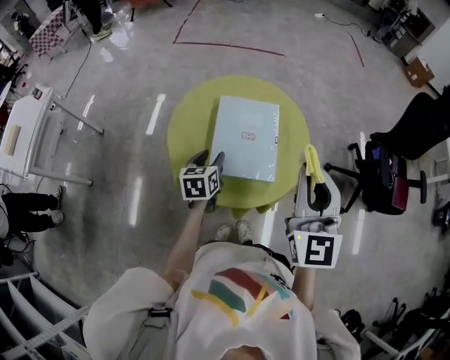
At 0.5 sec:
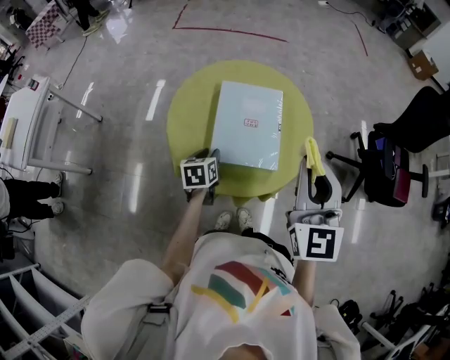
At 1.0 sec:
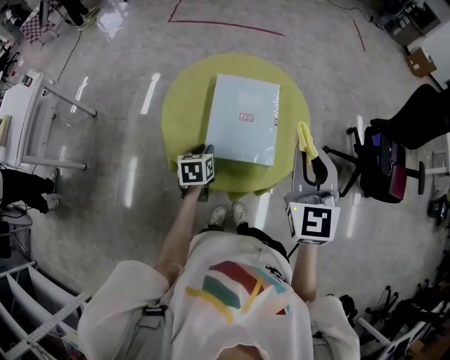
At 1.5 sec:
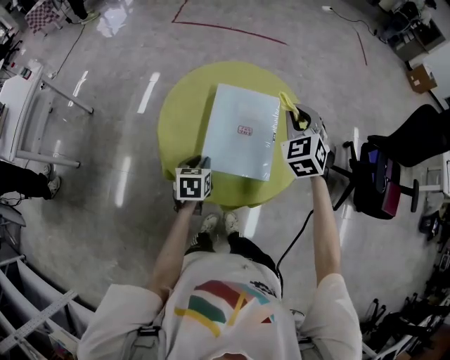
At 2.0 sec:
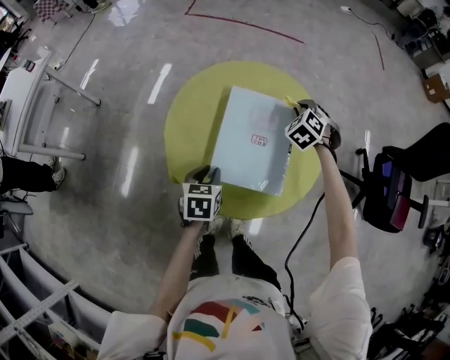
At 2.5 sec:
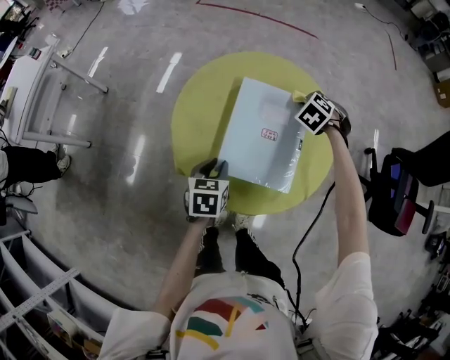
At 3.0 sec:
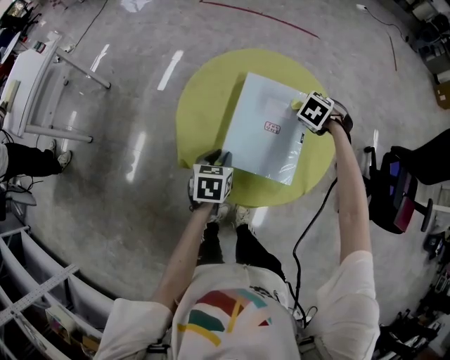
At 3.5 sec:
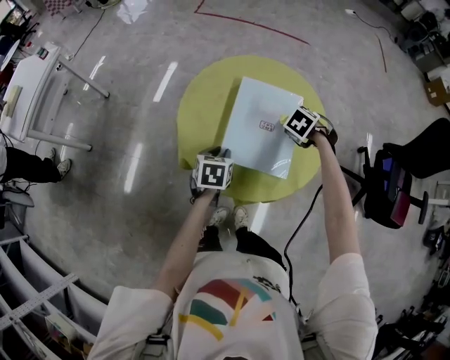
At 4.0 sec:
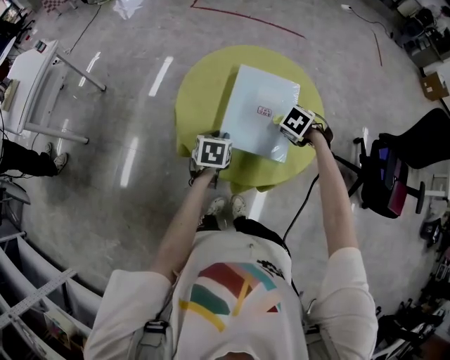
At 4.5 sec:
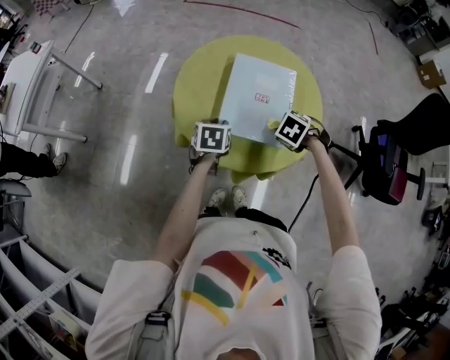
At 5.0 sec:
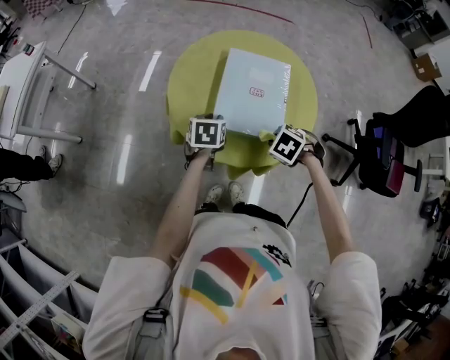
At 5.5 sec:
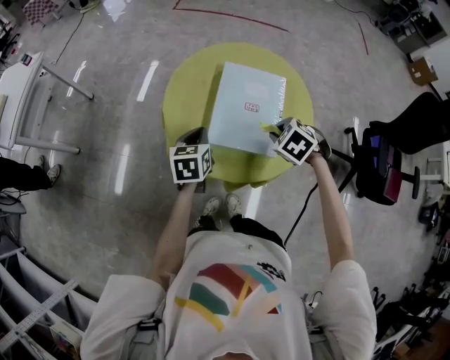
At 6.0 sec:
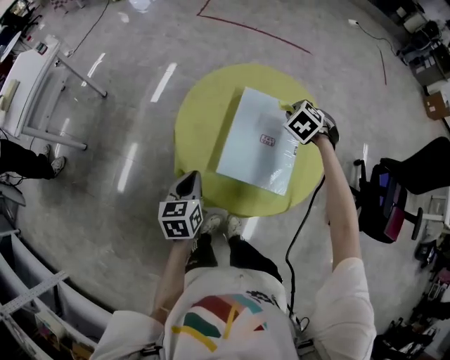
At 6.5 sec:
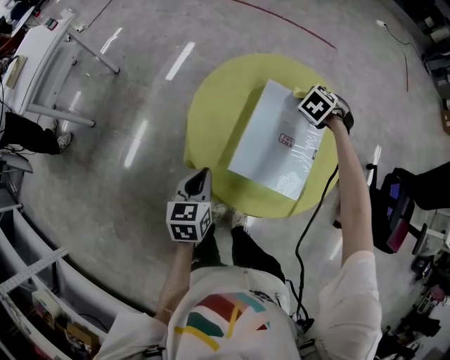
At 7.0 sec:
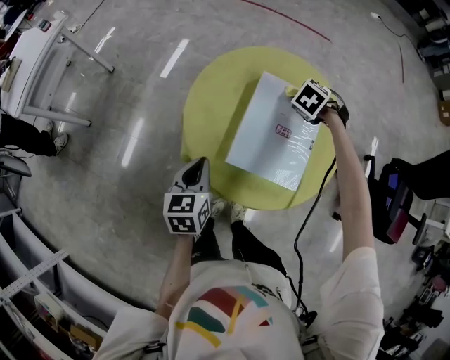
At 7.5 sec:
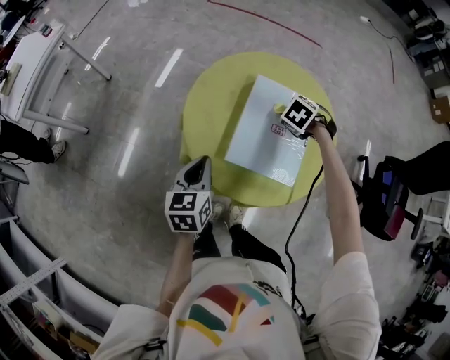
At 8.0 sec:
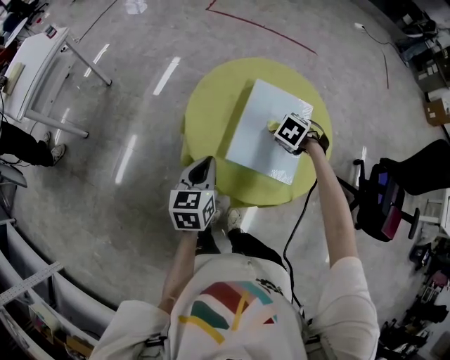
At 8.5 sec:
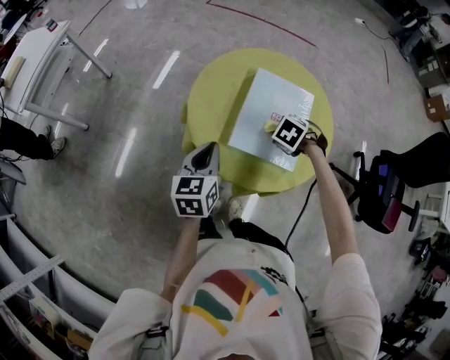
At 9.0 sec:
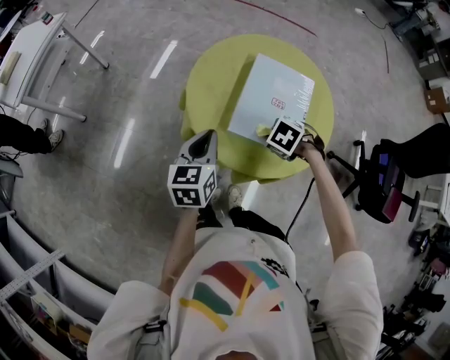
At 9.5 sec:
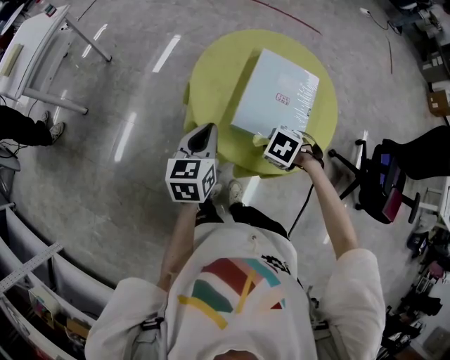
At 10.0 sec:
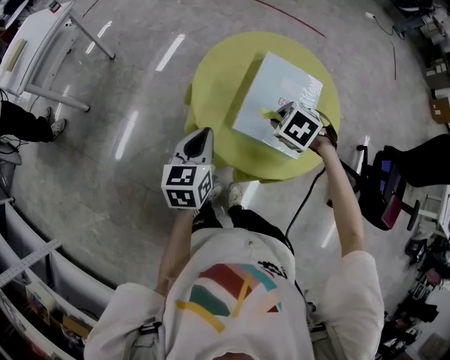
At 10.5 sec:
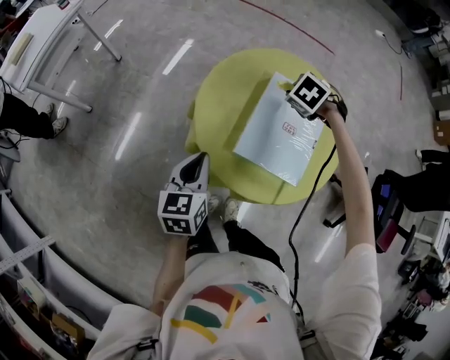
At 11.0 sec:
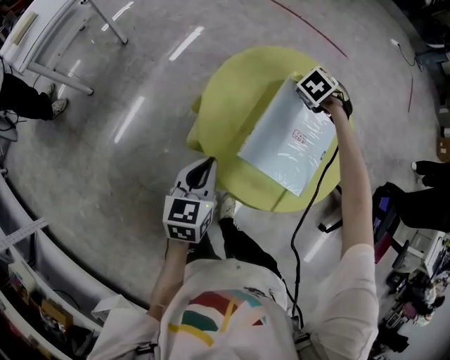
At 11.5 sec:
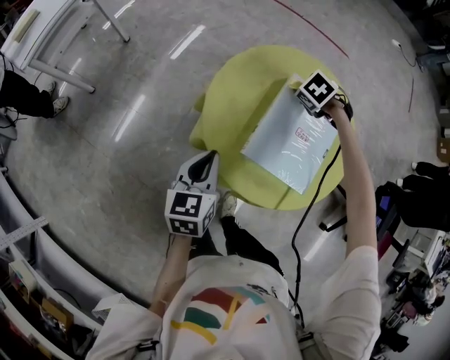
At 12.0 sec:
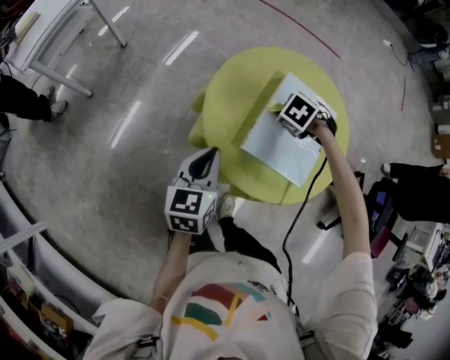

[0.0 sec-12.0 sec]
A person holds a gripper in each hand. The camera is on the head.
0.0 sec to 2.0 sec: The right gripper travels forward and downward by about 40 cm, and tilts its fingers some 50 degrees downward, while the left gripper moves downward, approximately 5 cm, and closes up.
2.0 sec to 4.0 sec: The right gripper moves about 15 cm, and rotates roughly 30 degrees.
4.0 sec to 6.0 sec: The left gripper moves some 10 cm, changes its angle by approximately 20 degrees, and closes. The right gripper shifts by some 15 cm.
6.0 sec to 8.0 sec: The right gripper shifts by roughly 10 cm.
8.0 sec to 10.0 sec: The right gripper moves some 10 cm.

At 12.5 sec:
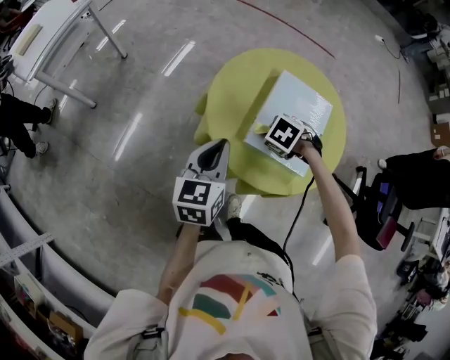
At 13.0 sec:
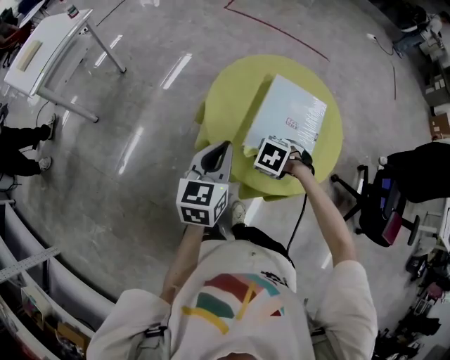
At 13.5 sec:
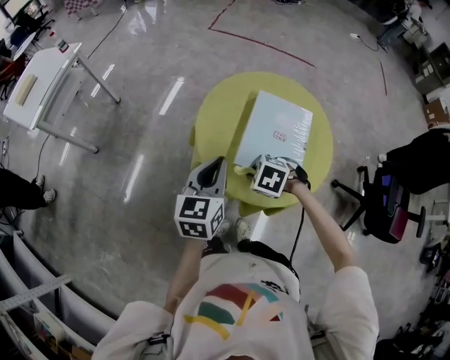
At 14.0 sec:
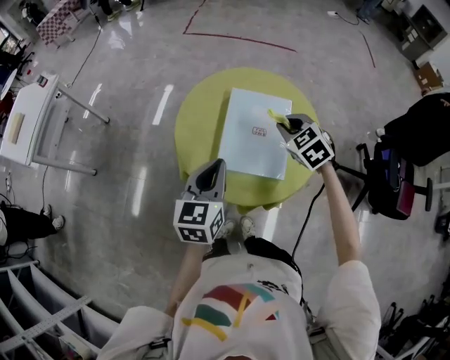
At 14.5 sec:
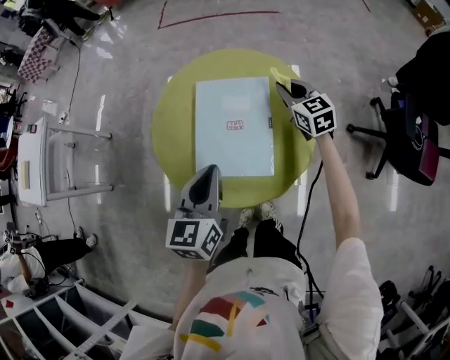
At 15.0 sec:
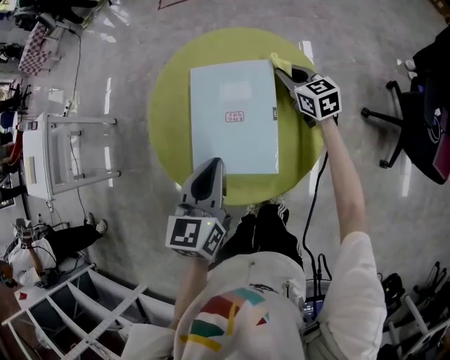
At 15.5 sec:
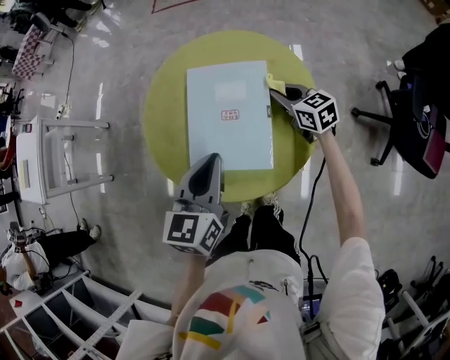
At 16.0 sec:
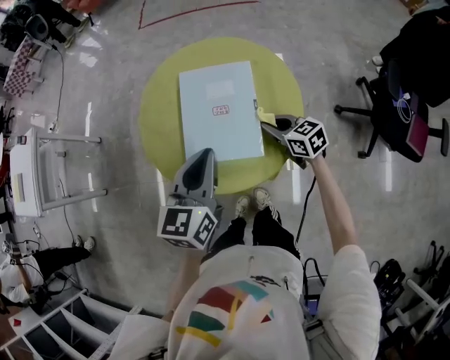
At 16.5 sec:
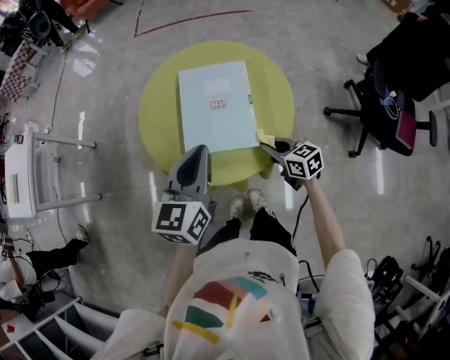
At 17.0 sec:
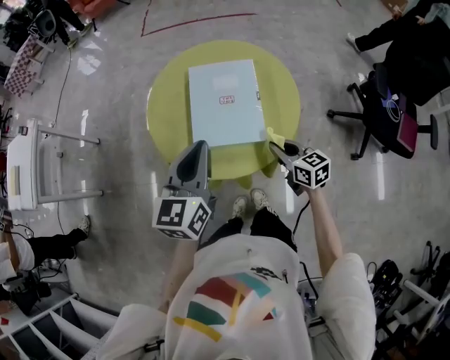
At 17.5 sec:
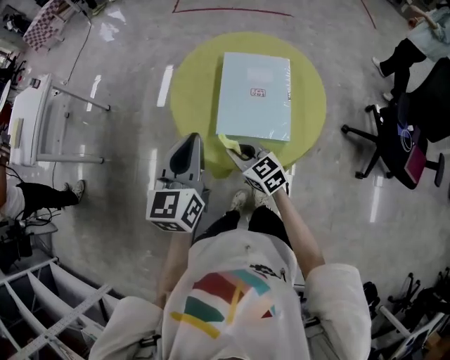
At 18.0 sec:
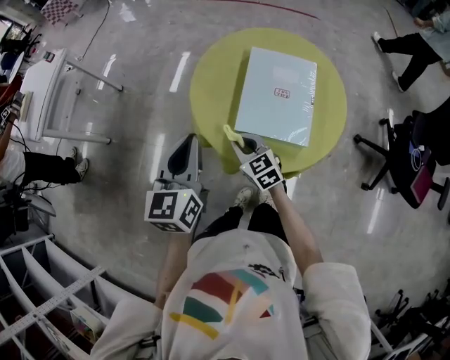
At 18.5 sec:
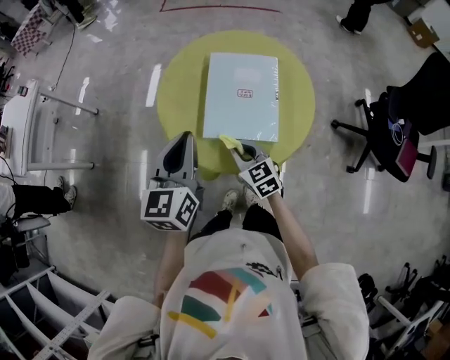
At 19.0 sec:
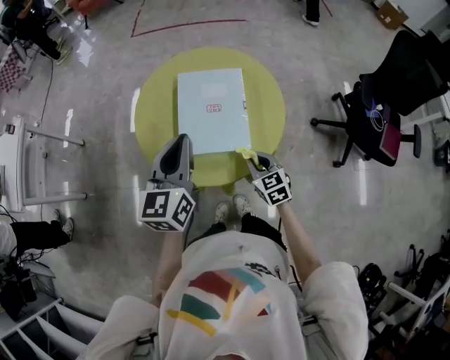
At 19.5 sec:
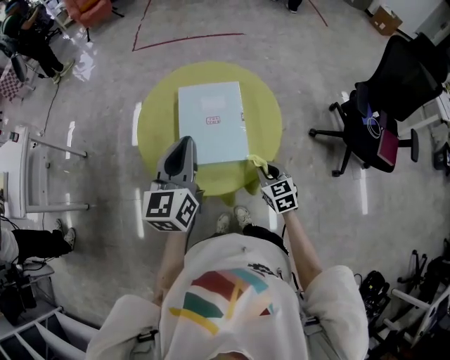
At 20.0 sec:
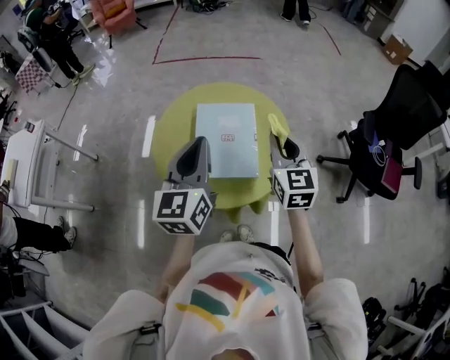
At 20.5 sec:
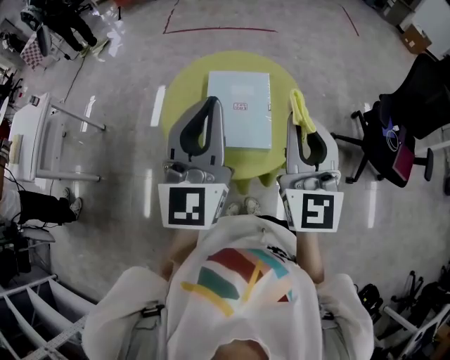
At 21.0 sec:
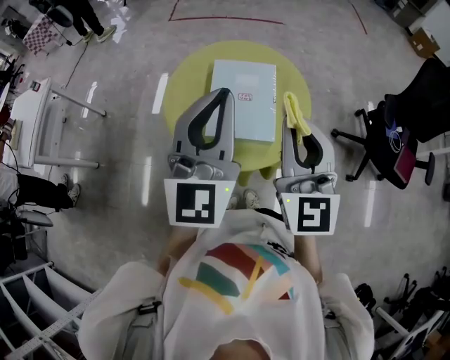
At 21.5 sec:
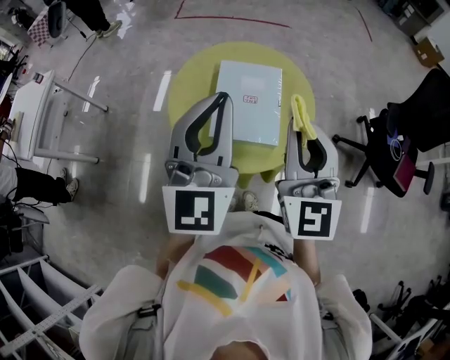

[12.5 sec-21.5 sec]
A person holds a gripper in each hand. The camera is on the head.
12.5 sec to 14.5 sec: The right gripper shifts by about 30 cm, and angles its fingers upward, by about 60 degrees; the left gripper moves about 20 cm.
14.5 sec to 17.0 sec: The right gripper travels backward by some 25 cm, and turns by roughly 20 degrees; the left gripper shifts some 5 cm upward.
17.0 sec to 19.5 sec: The left gripper moves approximately 15 cm to the left and comes back, while the right gripper moves roughly 25 cm to the left and comes back, and swivels approximately 20 degrees.
19.5 sec to 21.5 sec: The left gripper is displaced upward by some 15 cm, and swivels roughly 30 degrees; the right gripper heads upward, covering approximately 35 cm, and tips its fingers upward by approximately 40 degrees.

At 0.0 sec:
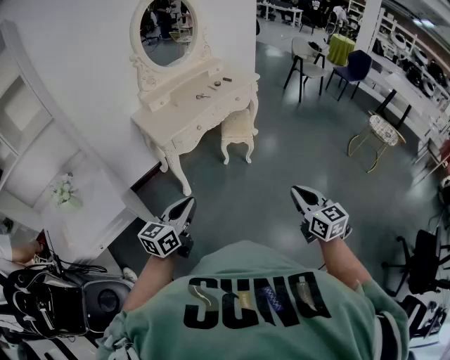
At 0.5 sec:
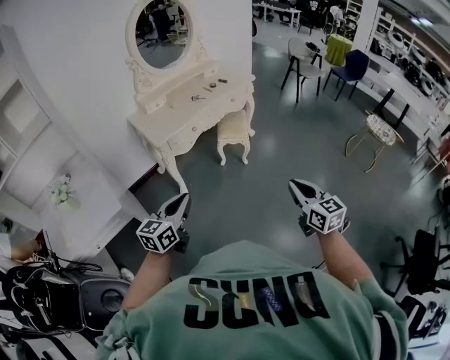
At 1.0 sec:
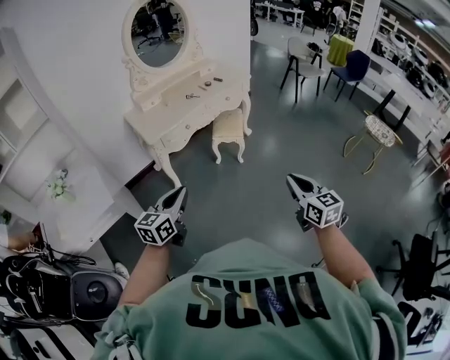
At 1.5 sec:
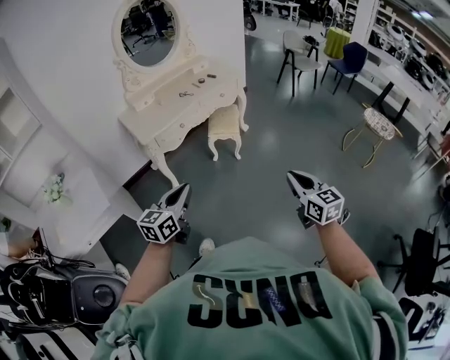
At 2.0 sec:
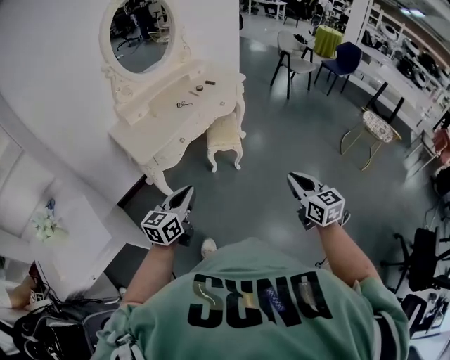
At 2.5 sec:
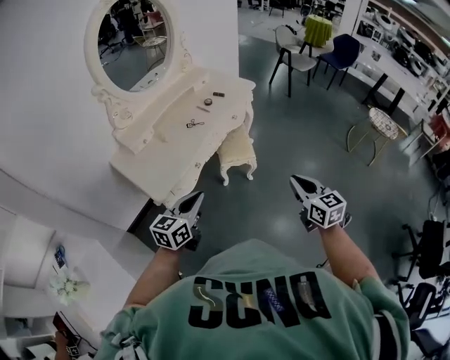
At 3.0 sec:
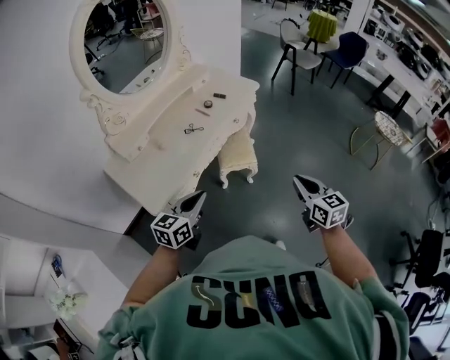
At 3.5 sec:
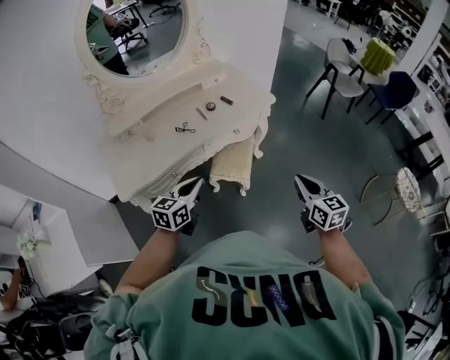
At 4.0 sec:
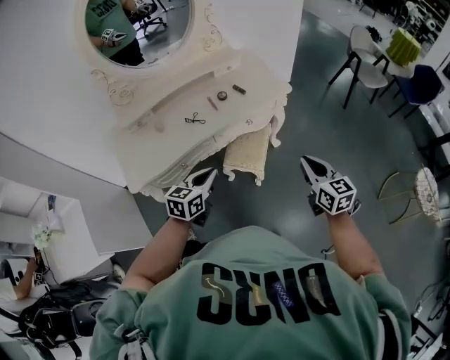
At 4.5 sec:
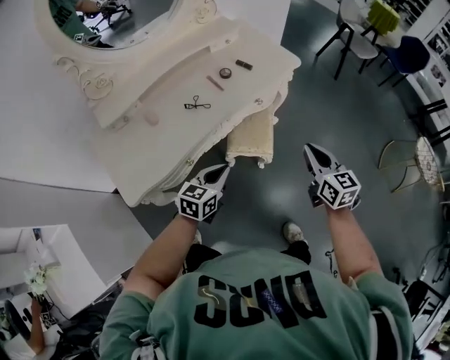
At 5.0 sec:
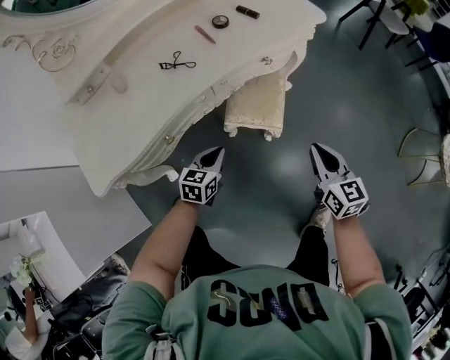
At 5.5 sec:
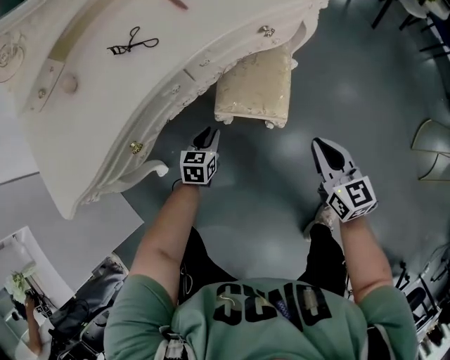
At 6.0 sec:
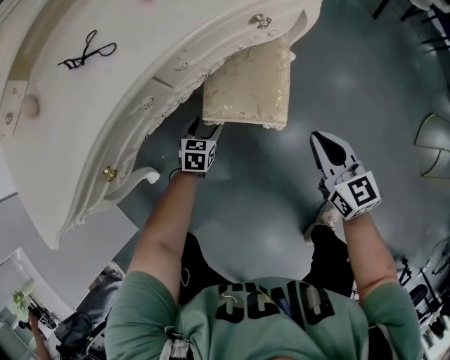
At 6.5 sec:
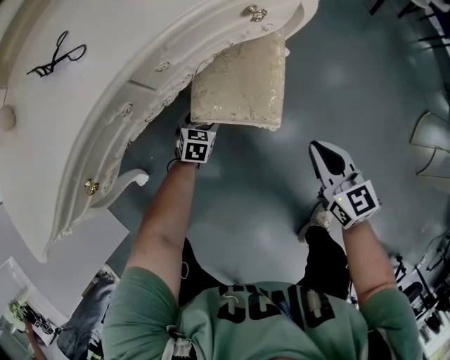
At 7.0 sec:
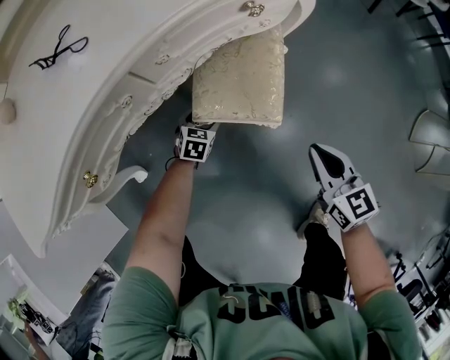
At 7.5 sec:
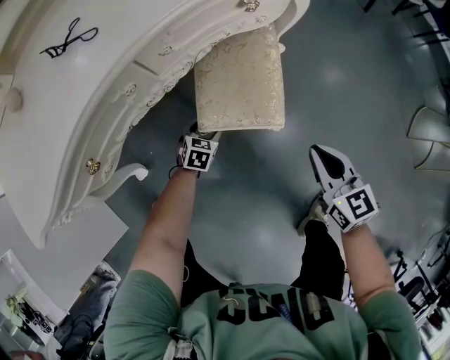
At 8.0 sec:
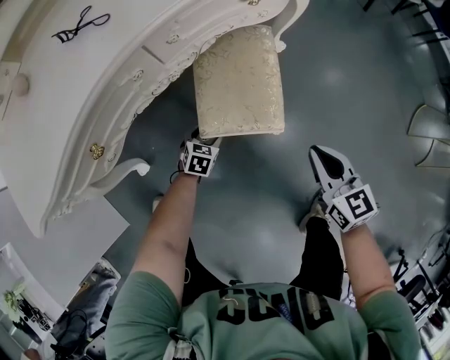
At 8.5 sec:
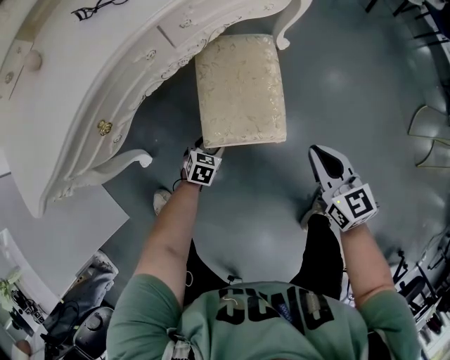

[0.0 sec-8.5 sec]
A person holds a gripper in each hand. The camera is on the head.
0.0 sec to 2.0 sec: The two grippers go roughly 20 cm forward.
2.0 sec to 4.0 sec: The pair of grippers is taken forward, about 50 cm.
4.0 sec to 6.5 sec: Both grippers move downward, approximately 60 cm. The left gripper turns by some 30 degrees, and opens up.
6.5 sec to 8.5 sec: The left gripper shifts some 20 cm backward. The right gripper heads backward, covering about 10 cm.
